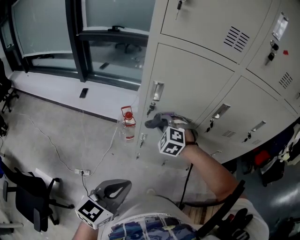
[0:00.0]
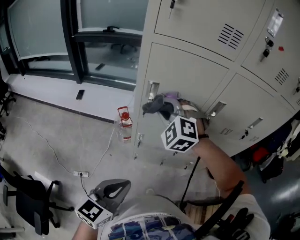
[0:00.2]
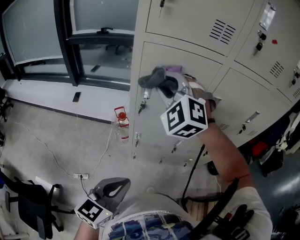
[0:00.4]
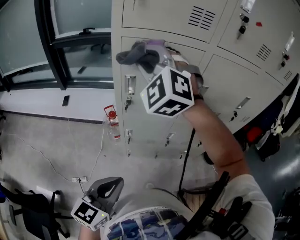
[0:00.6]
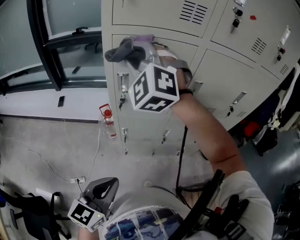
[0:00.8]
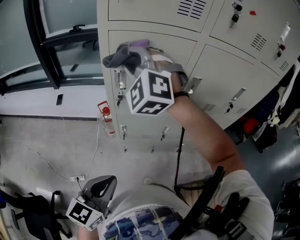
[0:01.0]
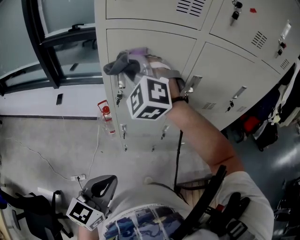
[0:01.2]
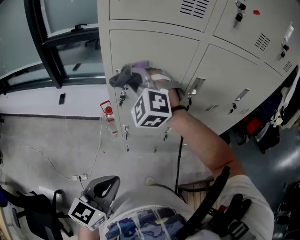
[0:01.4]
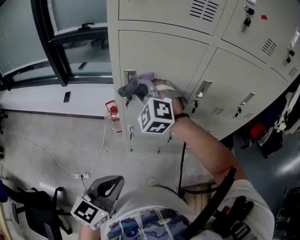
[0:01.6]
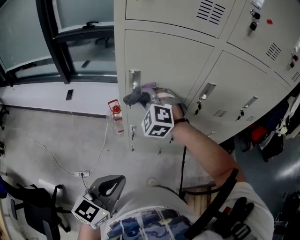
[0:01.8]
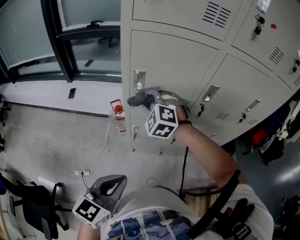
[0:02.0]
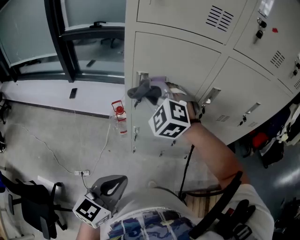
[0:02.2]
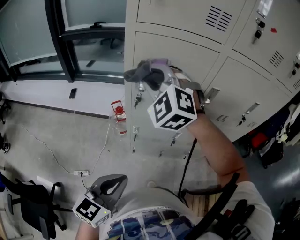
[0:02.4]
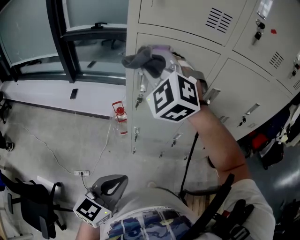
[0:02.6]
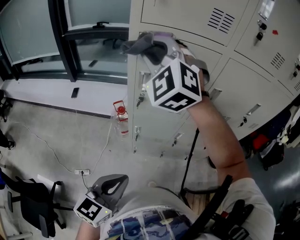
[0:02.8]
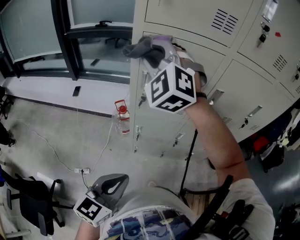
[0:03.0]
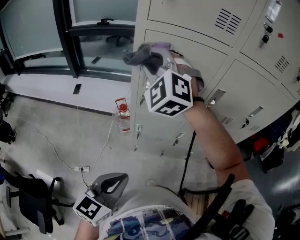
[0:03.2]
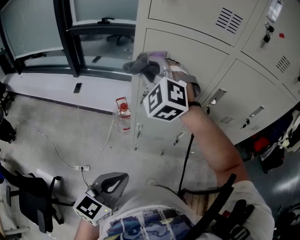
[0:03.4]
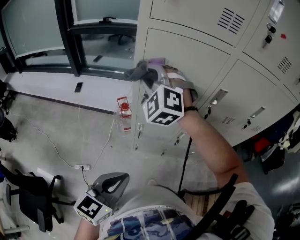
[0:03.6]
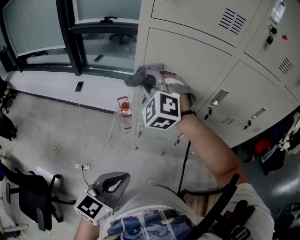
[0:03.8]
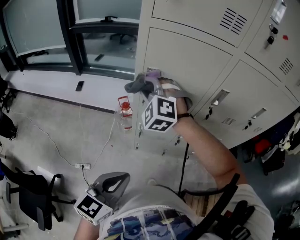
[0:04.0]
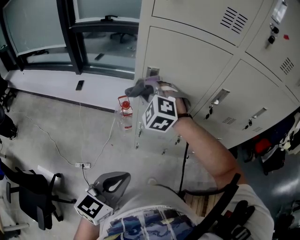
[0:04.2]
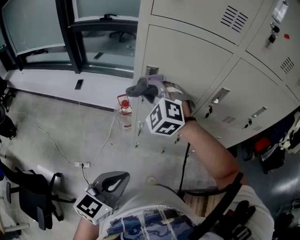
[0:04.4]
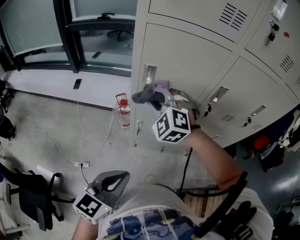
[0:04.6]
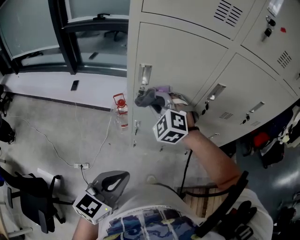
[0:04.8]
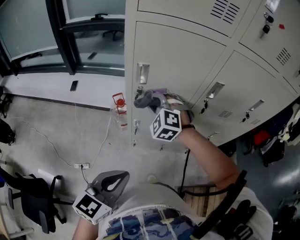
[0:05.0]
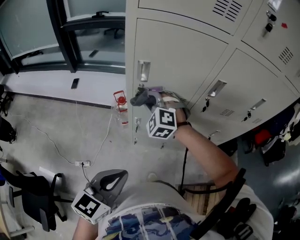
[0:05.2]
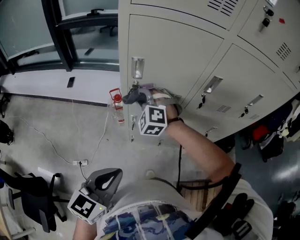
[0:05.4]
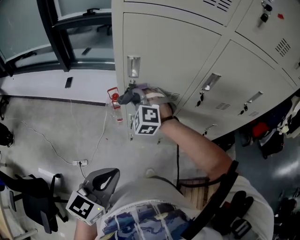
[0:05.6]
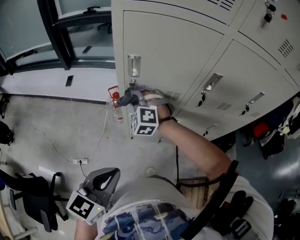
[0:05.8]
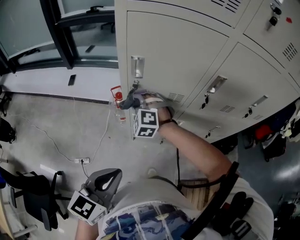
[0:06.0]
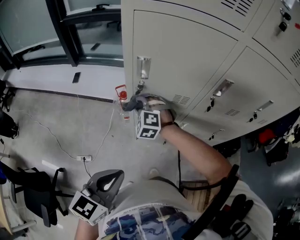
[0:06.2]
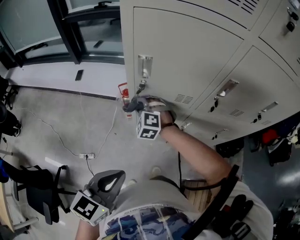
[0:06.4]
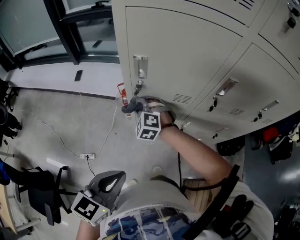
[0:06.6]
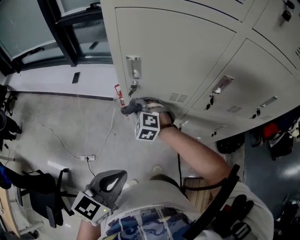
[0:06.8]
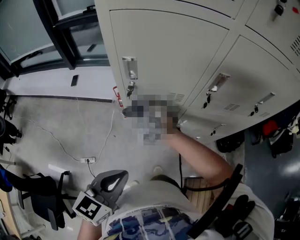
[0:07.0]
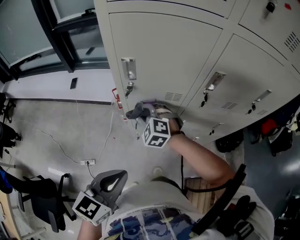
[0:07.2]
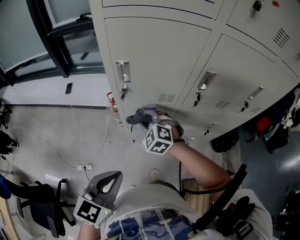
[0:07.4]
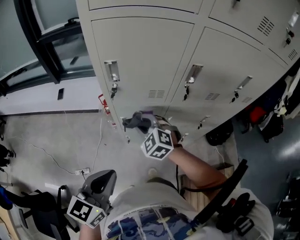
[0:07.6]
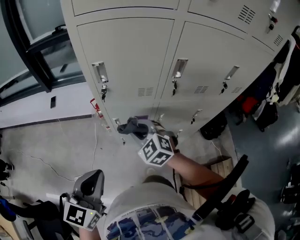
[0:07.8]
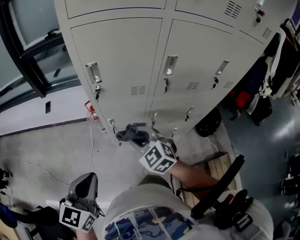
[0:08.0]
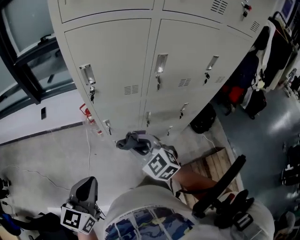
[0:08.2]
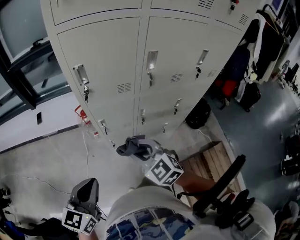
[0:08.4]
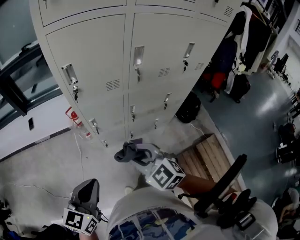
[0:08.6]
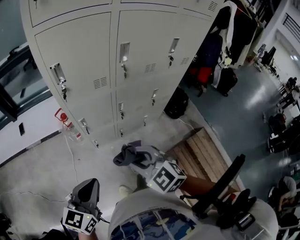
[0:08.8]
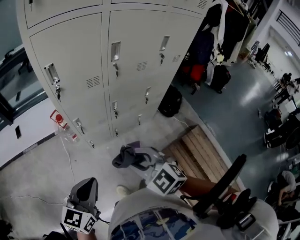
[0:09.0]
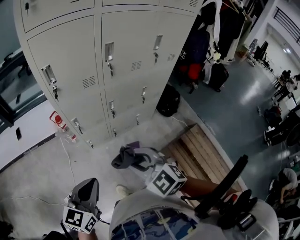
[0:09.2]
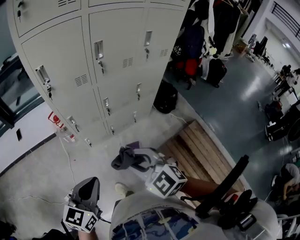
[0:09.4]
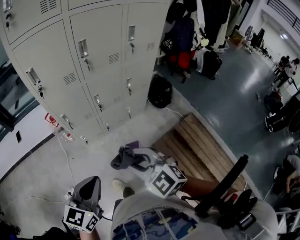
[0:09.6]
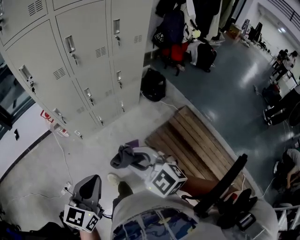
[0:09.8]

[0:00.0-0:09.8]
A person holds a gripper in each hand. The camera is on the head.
0:00.0 to 0:01.4: The right gripper heads upward, covering some 20 cm, and rotates some 20 degrees.
0:01.4 to 0:02.8: The right gripper goes about 15 cm upward.
0:02.8 to 0:04.2: The right gripper is displaced downward by some 20 cm, and swivels roughly 20 degrees.
0:04.2 to 0:05.6: The right gripper moves downward, some 10 cm.
0:05.6 to 0:07.0: The right gripper heads downward, covering some 10 cm.
0:07.0 to 0:08.4: The left gripper shifts approximately 10 cm to the left and backward. Meanwhile the right gripper is displaced backward and to the right by about 25 cm, and swivels some 40 degrees.
0:08.4 to 0:09.8: The right gripper is displaced backward and to the right by some 35 cm. Meanwhile the left gripper travels to the right and backward by roughly 30 cm, and changes its angle by some 20 degrees.

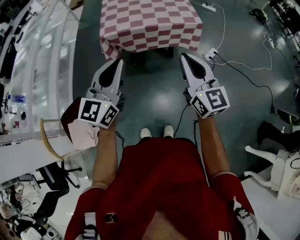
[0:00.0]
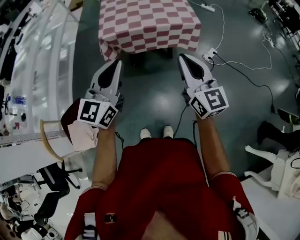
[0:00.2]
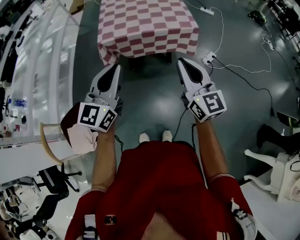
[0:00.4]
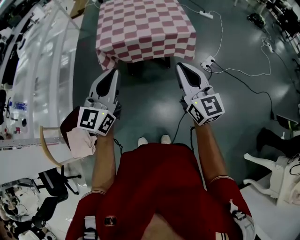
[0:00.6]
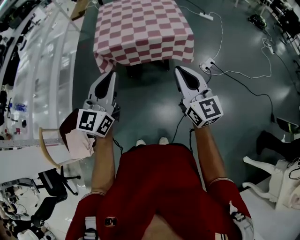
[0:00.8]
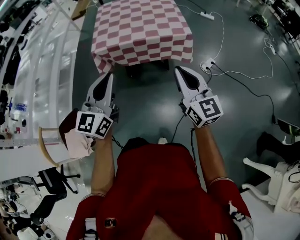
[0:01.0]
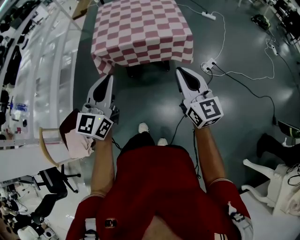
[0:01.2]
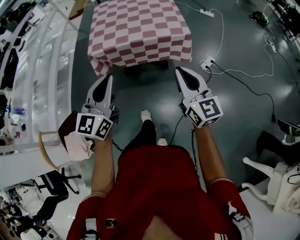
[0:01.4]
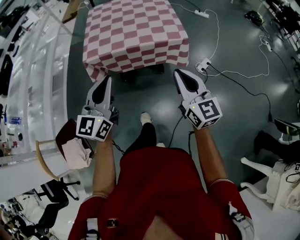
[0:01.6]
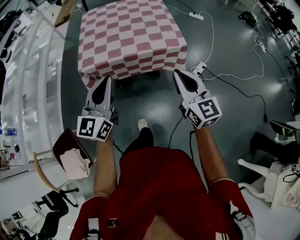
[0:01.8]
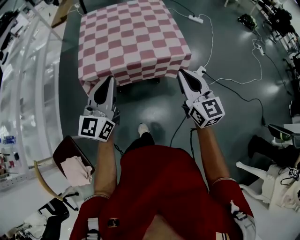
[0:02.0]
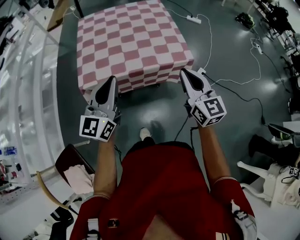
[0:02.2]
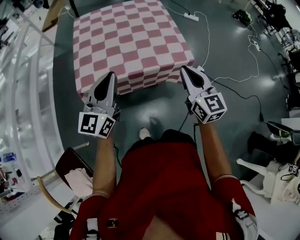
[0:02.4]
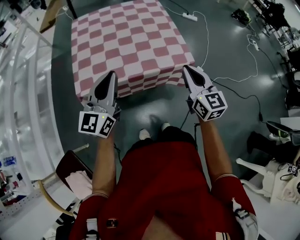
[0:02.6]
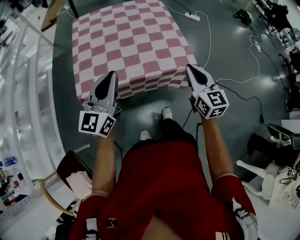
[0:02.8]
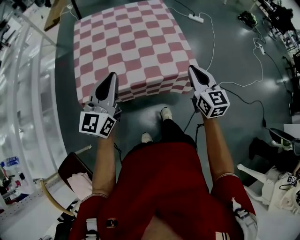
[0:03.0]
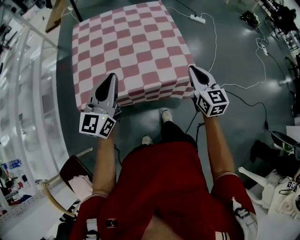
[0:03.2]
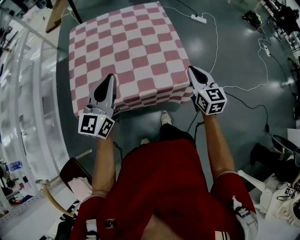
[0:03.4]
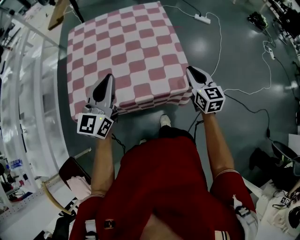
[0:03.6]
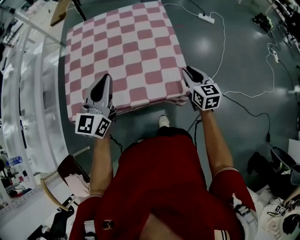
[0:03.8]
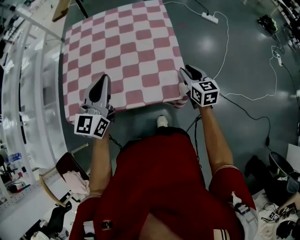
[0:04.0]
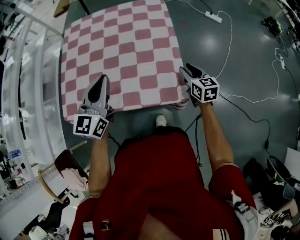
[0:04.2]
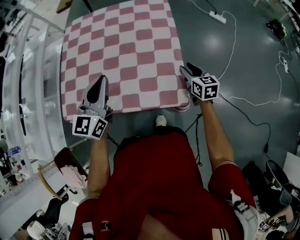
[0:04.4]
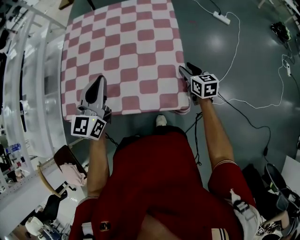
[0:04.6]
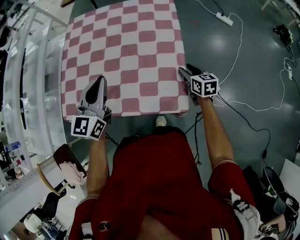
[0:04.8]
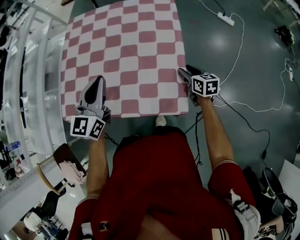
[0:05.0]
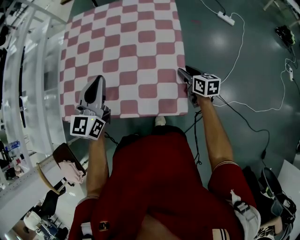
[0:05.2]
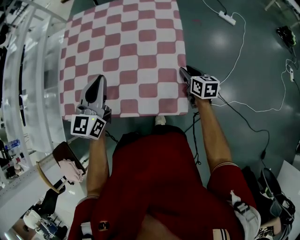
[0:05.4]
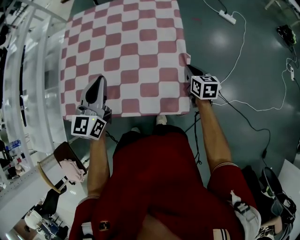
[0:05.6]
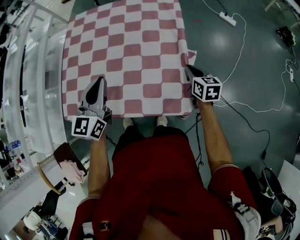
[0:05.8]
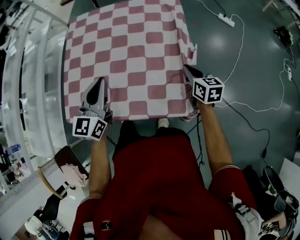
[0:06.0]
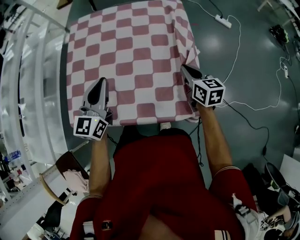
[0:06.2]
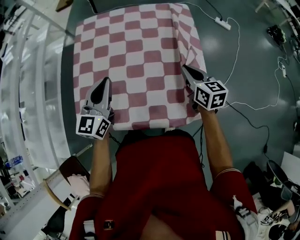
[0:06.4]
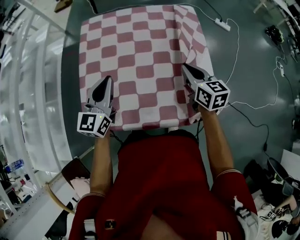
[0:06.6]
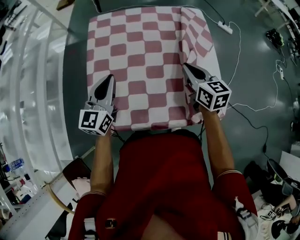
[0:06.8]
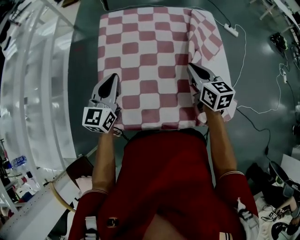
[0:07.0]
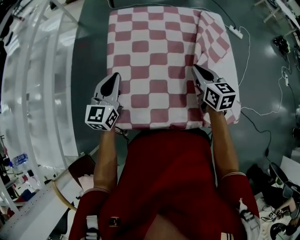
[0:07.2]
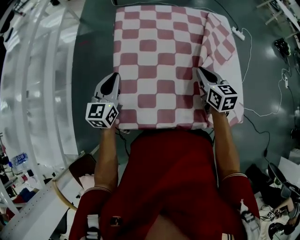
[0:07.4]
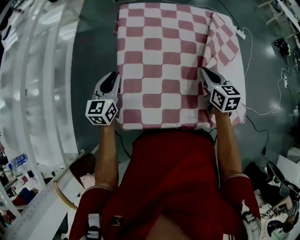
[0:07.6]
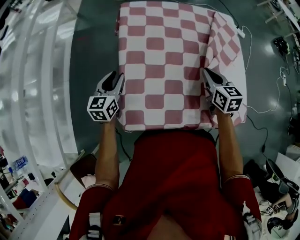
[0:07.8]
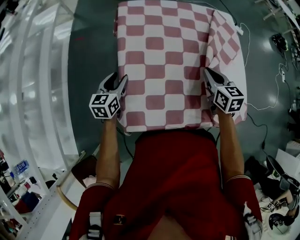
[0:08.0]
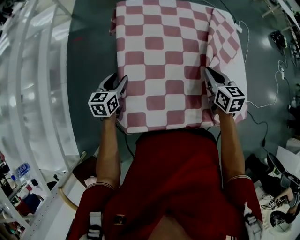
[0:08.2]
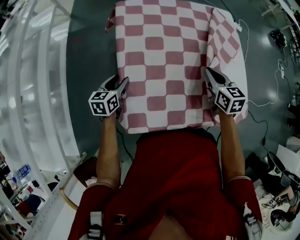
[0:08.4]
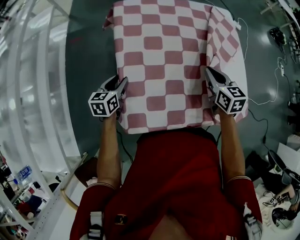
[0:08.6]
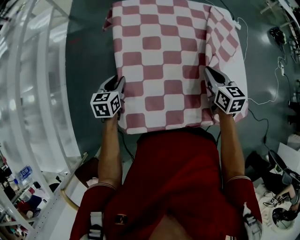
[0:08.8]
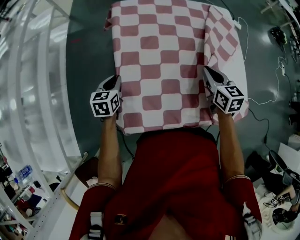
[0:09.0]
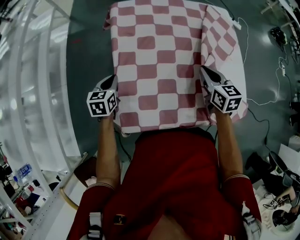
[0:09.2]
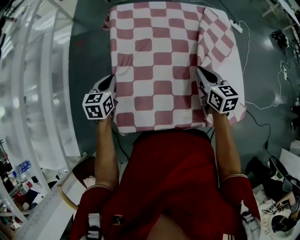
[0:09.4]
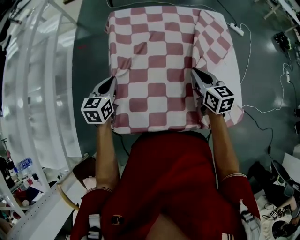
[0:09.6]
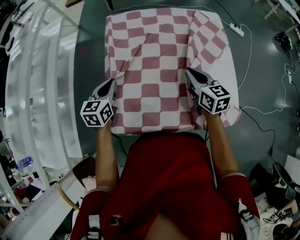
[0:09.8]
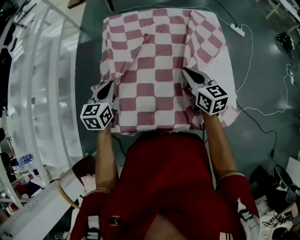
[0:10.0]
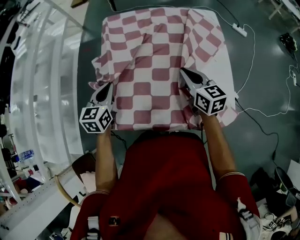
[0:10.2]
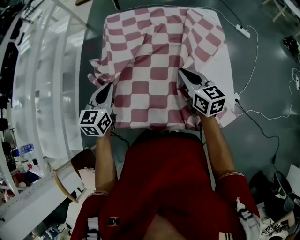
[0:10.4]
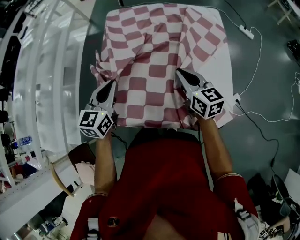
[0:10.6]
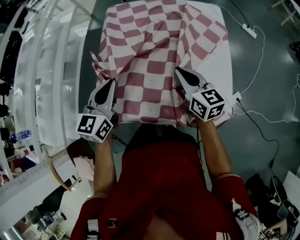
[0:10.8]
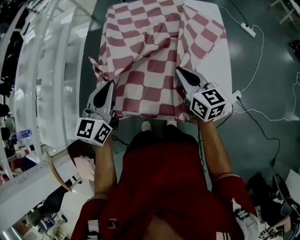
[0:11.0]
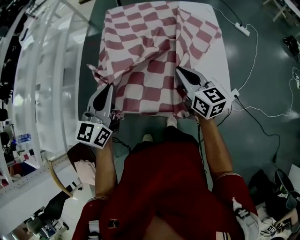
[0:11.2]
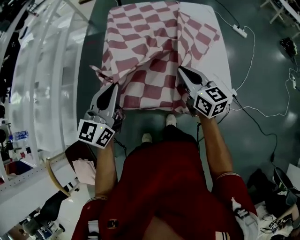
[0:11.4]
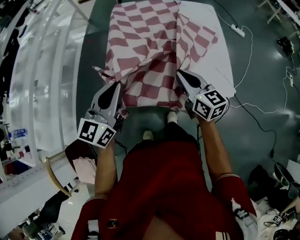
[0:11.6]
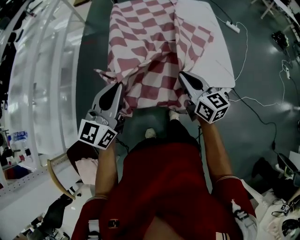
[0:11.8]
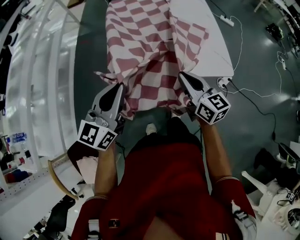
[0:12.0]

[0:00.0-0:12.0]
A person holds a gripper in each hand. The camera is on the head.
0:00.0 to 0:01.6: The right gripper shifts about 15 cm to the right and forward, while the left gripper is displaced forward and to the right by about 15 cm.
0:01.6 to 0:03.0: Both grippers move forward, roughly 35 cm.
0:03.0 to 0:04.4: The left gripper goes about 20 cm forward and to the right. Meanwhile the right gripper shifts some 30 cm forward, downward and to the right, swivels some 30 degrees, and opens its fingers.
0:04.4 to 0:06.0: The right gripper ends up about 5 cm from where it was, and closes up. Meanwhile the left gripper shifts by roughly 5 cm.
0:06.0 to 0:07.6: The grippers both shift to the left by roughly 35 cm.
0:07.6 to 0:09.0: The left gripper moves downward, some 10 cm, rotates roughly 20 degrees, and opens, then closes again.
0:09.0 to 0:10.4: The left gripper shifts approximately 25 cm upward, to the right and backward. Meanwhile the right gripper is displaced to the right by about 5 cm, and changes its angle by approximately 20 degrees.
0:10.4 to 0:12.0: The left gripper shifts about 25 cm backward and upward, and swivels approximately 30 degrees. Meanwhile the right gripper shifts about 25 cm backward and to the left.

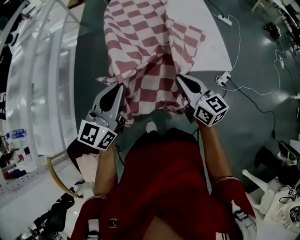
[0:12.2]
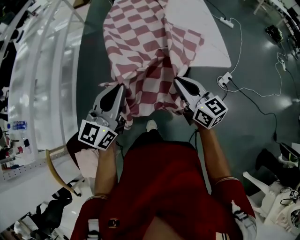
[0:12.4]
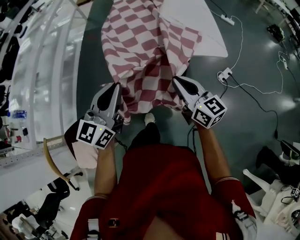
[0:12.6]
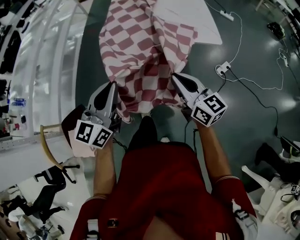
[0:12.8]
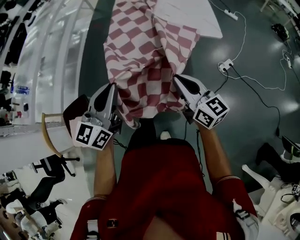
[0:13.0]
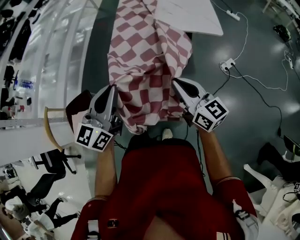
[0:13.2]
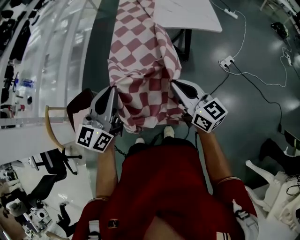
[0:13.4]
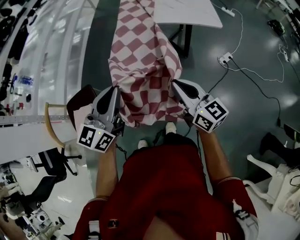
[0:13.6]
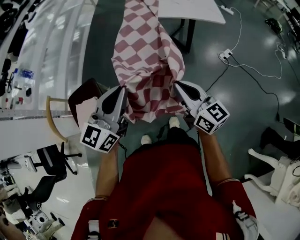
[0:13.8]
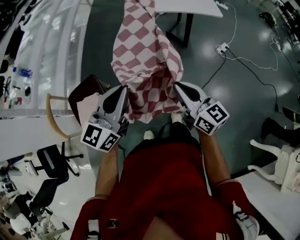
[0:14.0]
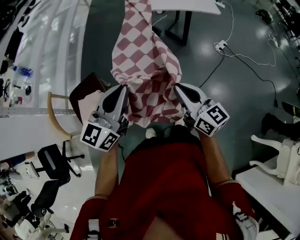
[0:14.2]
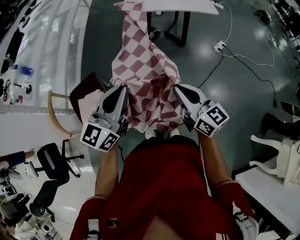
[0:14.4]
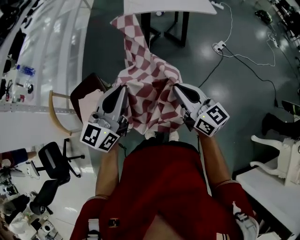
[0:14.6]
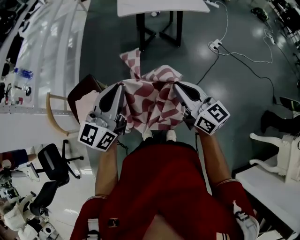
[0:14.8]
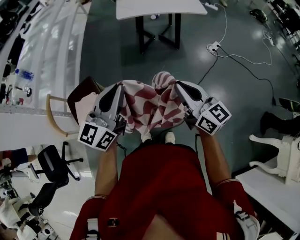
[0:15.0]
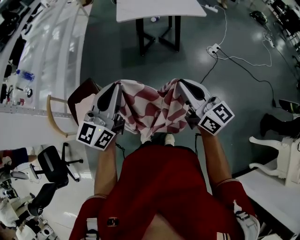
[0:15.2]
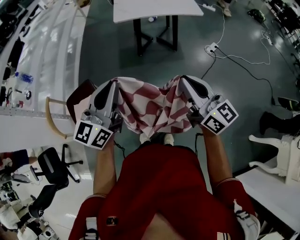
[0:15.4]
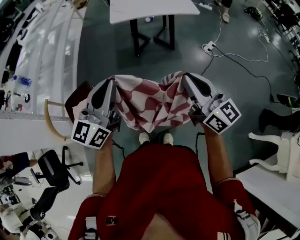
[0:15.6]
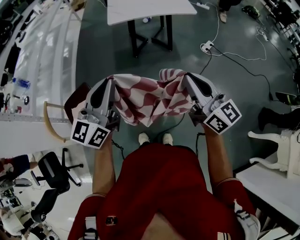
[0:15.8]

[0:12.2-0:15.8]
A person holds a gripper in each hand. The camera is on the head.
0:12.2 to 0:14.0: Both grippers are carried backward, approximately 60 cm.
0:14.0 to 0:15.8: The right gripper shifts about 20 cm to the right, upward and backward. The left gripper travels upward, backward and to the right by approximately 10 cm.
